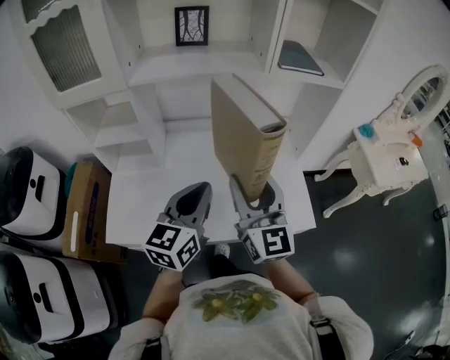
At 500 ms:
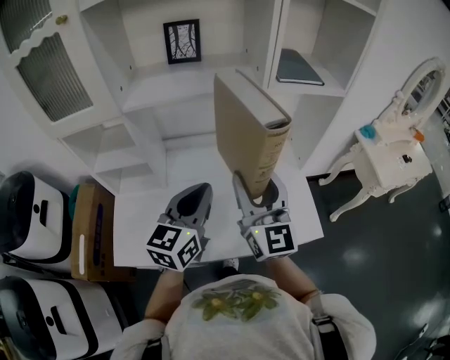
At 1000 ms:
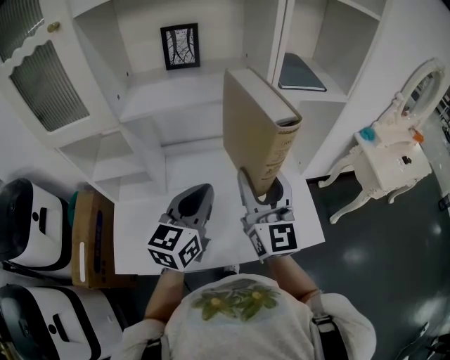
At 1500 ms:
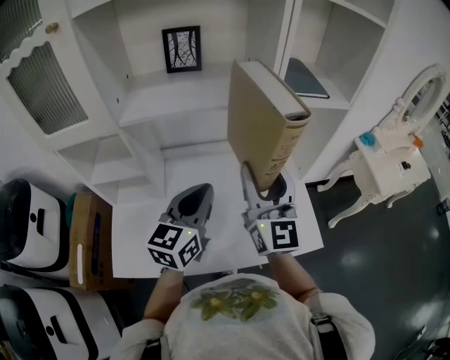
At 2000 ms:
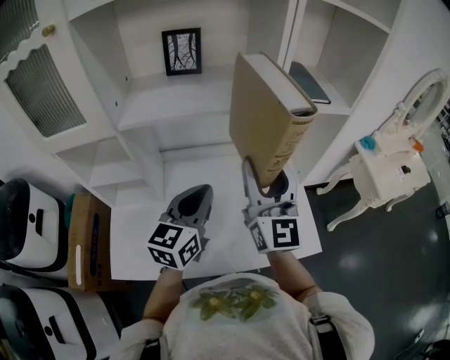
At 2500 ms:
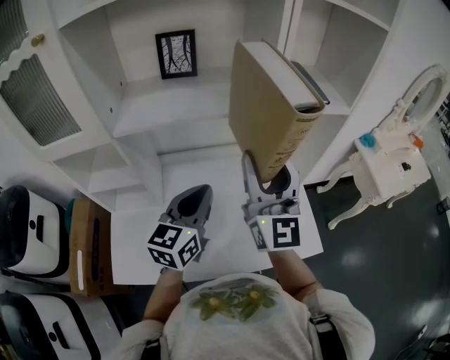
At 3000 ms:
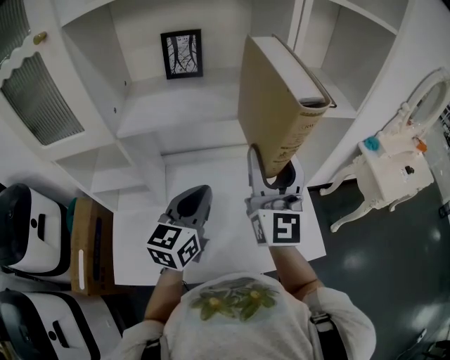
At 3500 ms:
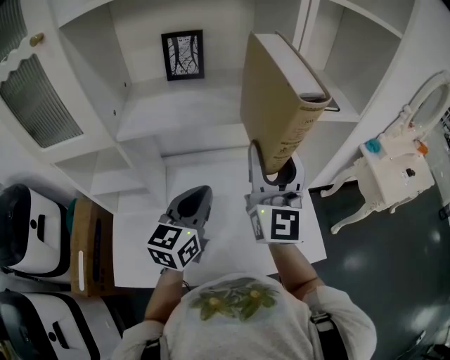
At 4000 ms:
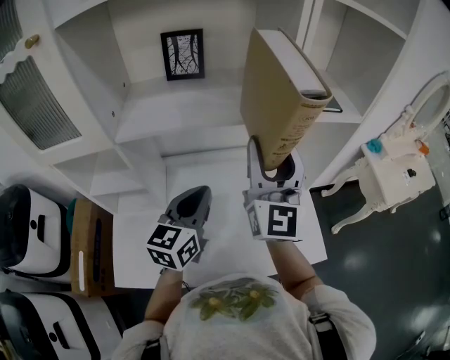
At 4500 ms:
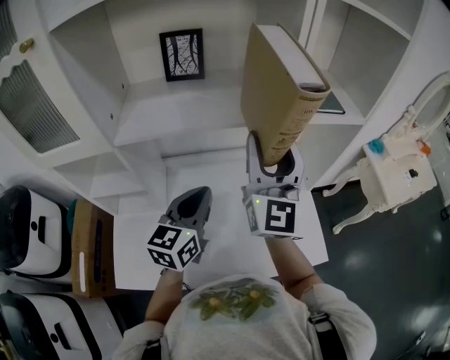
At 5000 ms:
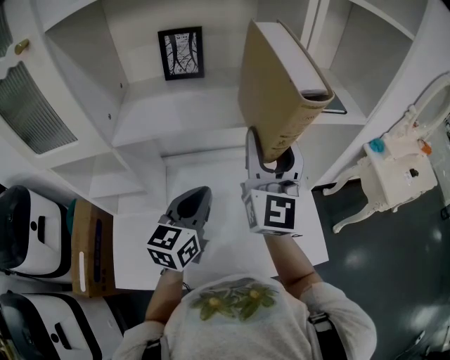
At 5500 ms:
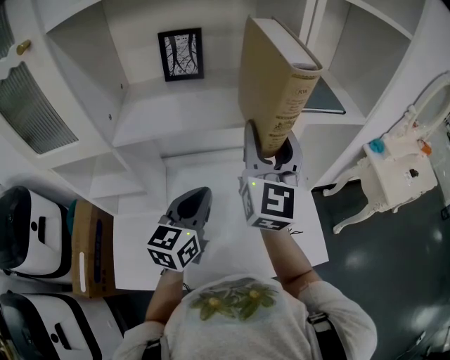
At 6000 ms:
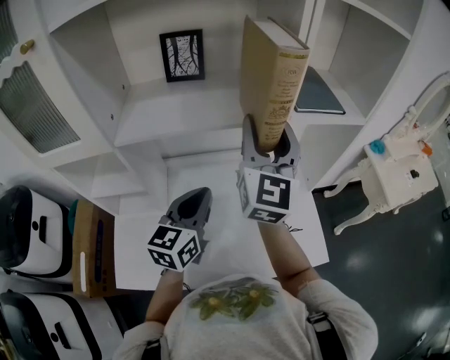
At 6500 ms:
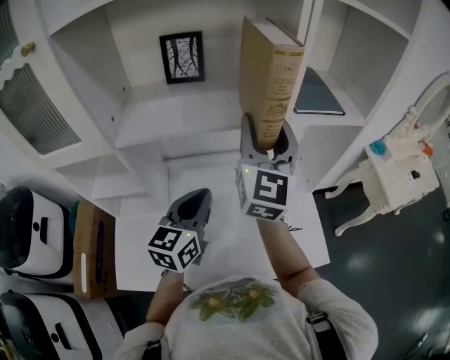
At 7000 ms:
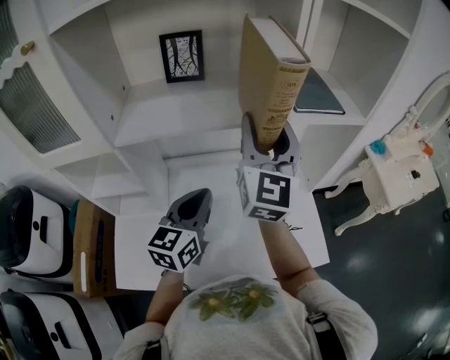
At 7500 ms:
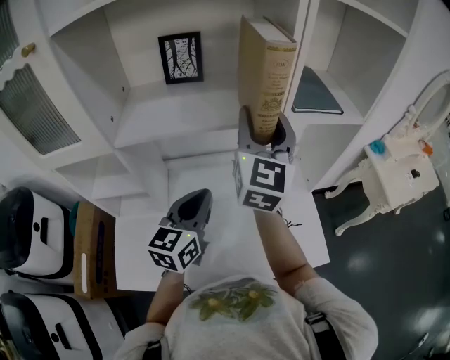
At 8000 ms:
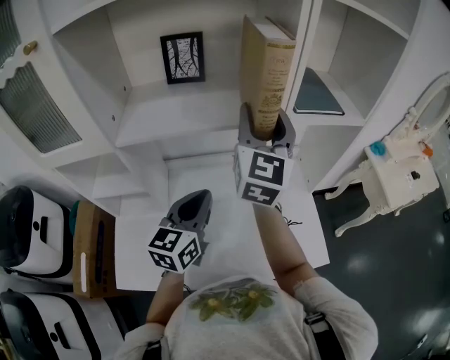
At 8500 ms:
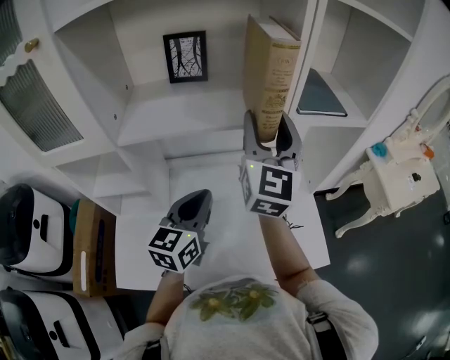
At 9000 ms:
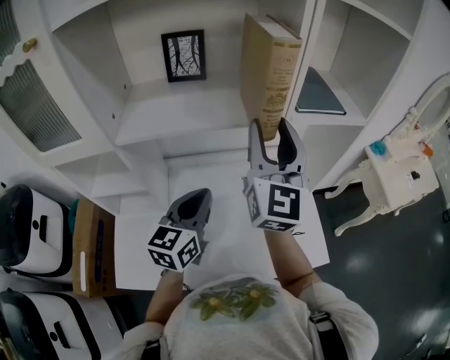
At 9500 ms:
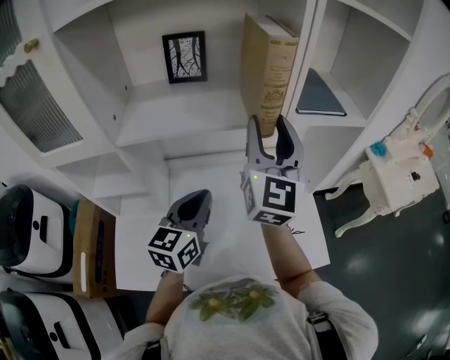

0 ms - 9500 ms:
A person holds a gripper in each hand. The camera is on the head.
0 ms - 2000 ms: The right gripper heads forward and upward, covering approximately 15 cm. The left gripper goes about 10 cm forward.
2000 ms - 4000 ms: The right gripper heads forward, covering about 5 cm.
4000 ms - 5500 ms: The grippers stay close to where they were, moving slightly.
5500 ms - 9500 ms: The grippers stay close to where they were, moving slightly.

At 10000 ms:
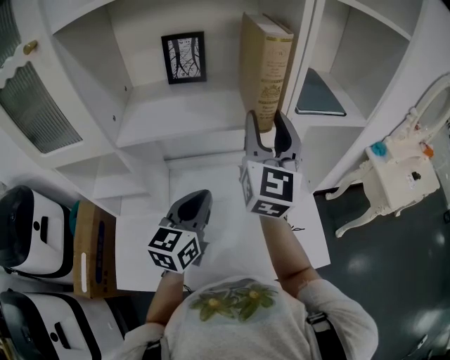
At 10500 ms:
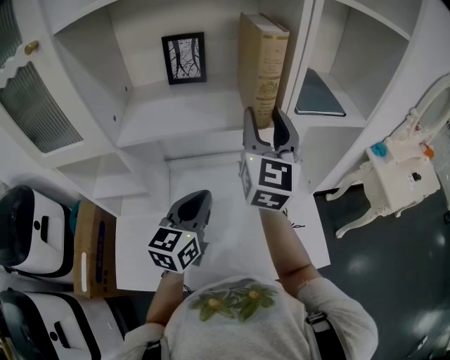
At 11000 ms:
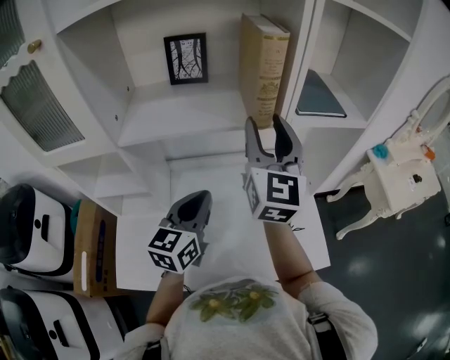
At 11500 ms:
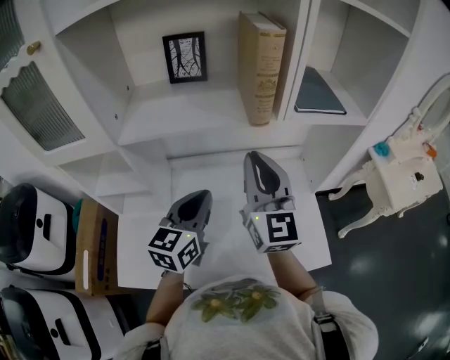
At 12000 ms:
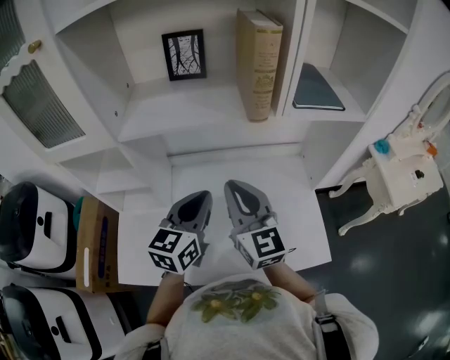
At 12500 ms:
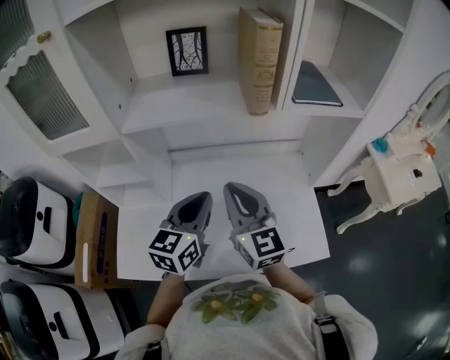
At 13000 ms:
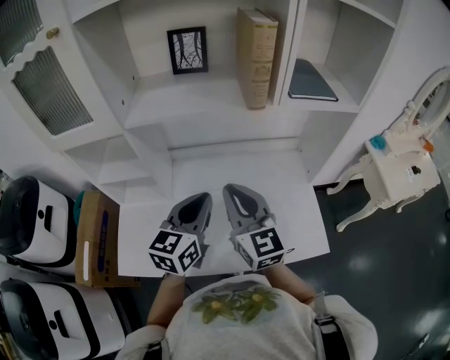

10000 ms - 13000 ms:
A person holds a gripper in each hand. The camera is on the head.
10000 ms - 11500 ms: The right gripper goes approximately 10 cm backward and downward, and closes.
11500 ms - 13000 ms: The right gripper heads backward, downward and to the left, covering about 15 cm; the left gripper is displaced backward by approximately 5 cm.

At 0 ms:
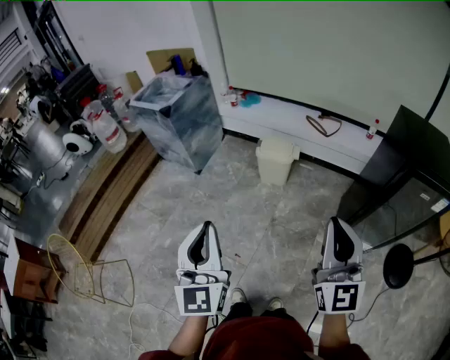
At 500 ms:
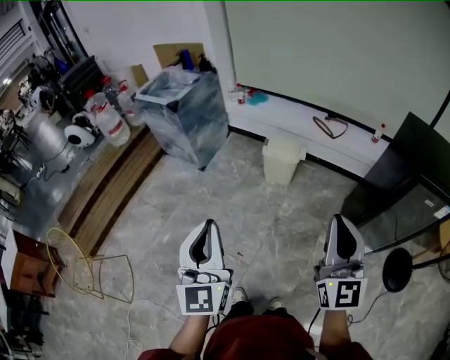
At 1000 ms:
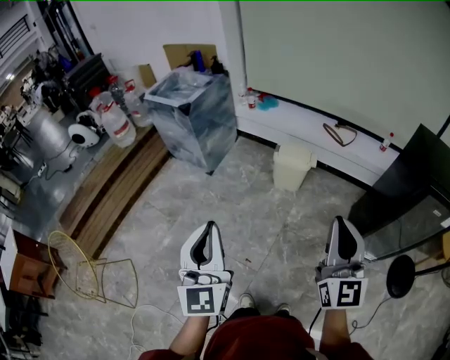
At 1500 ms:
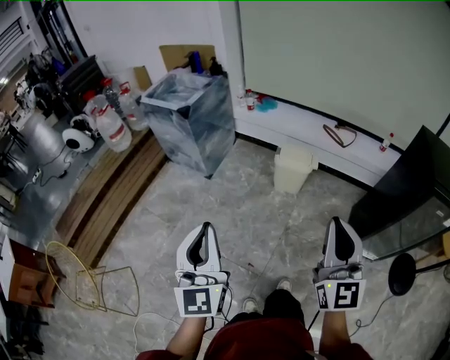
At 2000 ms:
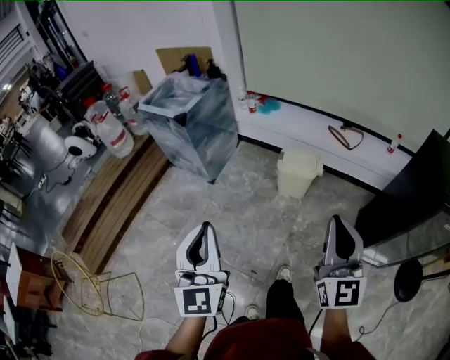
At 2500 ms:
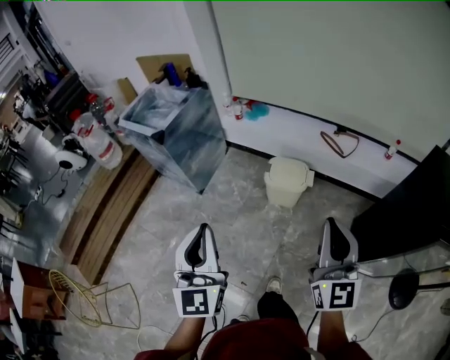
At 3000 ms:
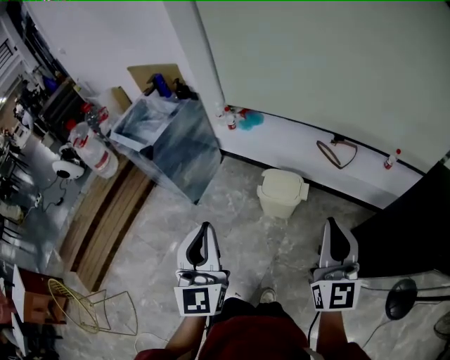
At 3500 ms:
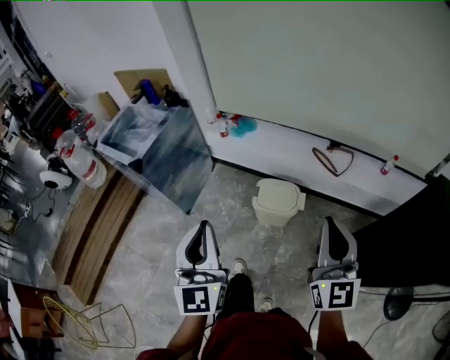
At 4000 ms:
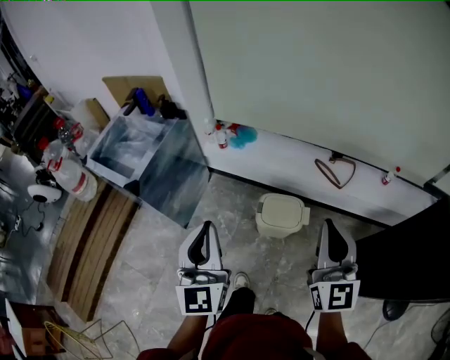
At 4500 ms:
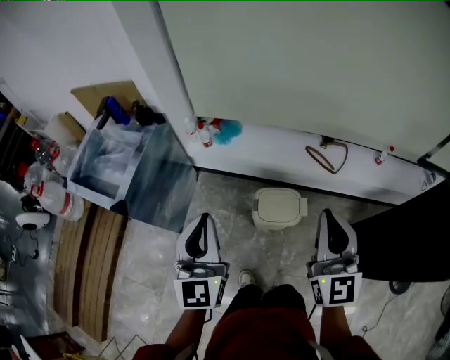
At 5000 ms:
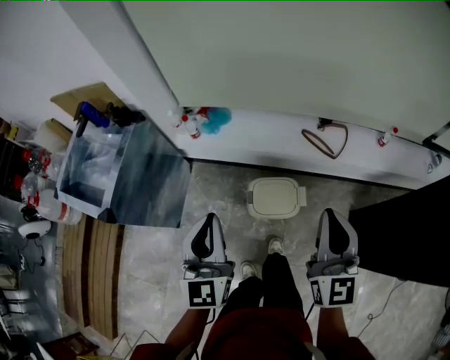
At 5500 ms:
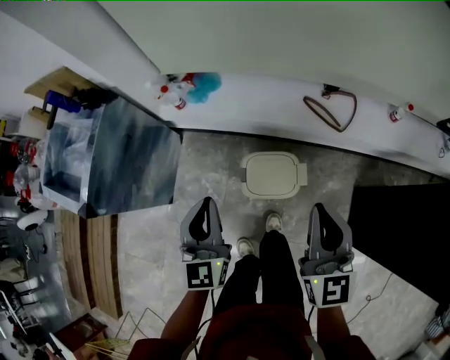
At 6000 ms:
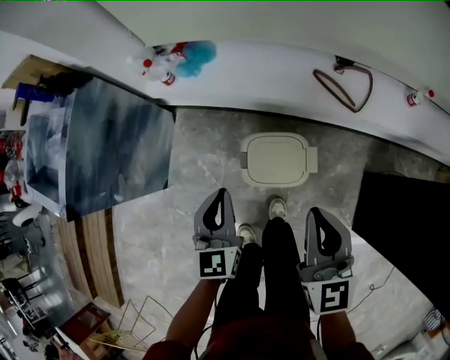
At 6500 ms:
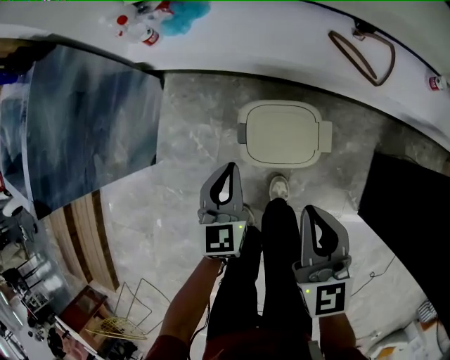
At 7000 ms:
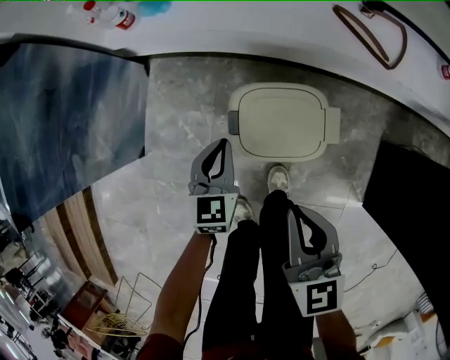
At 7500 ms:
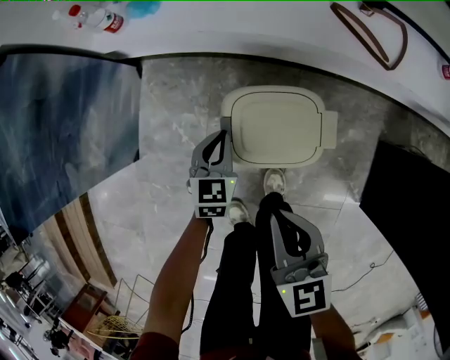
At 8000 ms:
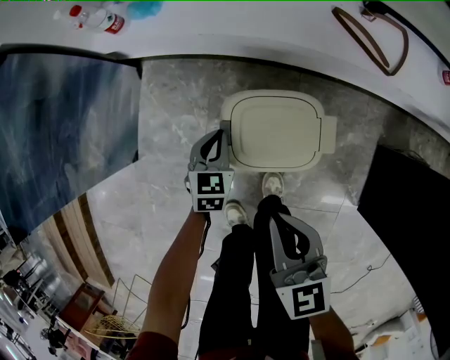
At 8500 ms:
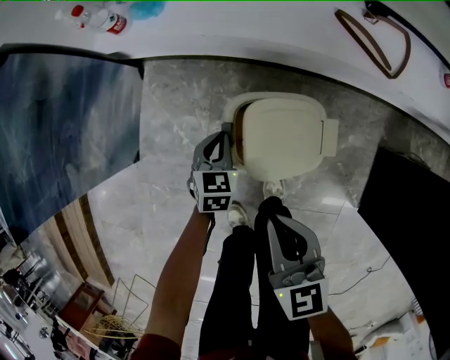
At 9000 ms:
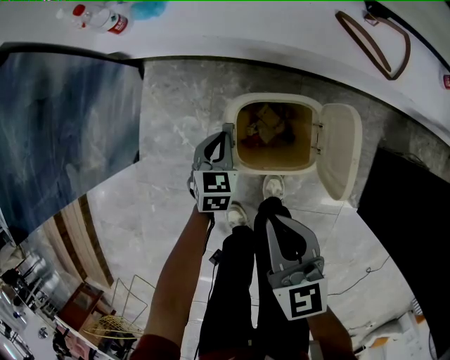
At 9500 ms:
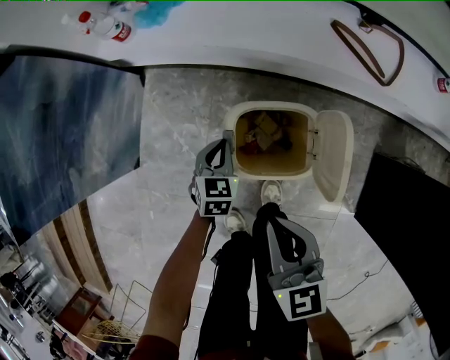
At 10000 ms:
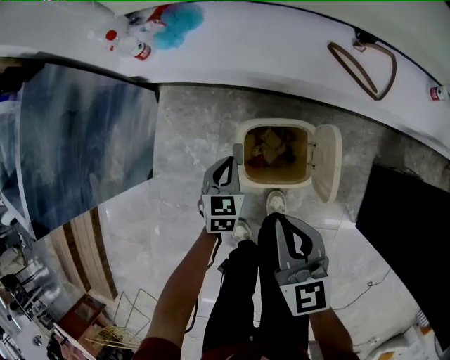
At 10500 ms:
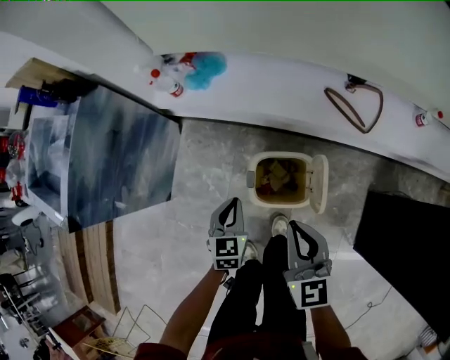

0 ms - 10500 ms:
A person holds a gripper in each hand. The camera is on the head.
0 ms - 2000 ms: The two grippers go roughly 20 cm forward and to the left.
2000 ms - 4000 ms: Both grippers move forward, roughly 40 cm.
4000 ms - 6500 ms: The left gripper moves downward and forward, roughly 50 cm, and angles its fingers downward, by some 30 degrees, while the right gripper is displaced downward by about 40 cm, and turns by approximately 30 degrees.
6500 ms - 8500 ms: The left gripper goes roughly 20 cm downward, and swivels roughly 20 degrees. Meanwhile the right gripper heads downward, covering approximately 10 cm.
8500 ms - 10500 ms: Both grippers travel together upward, some 15 cm.

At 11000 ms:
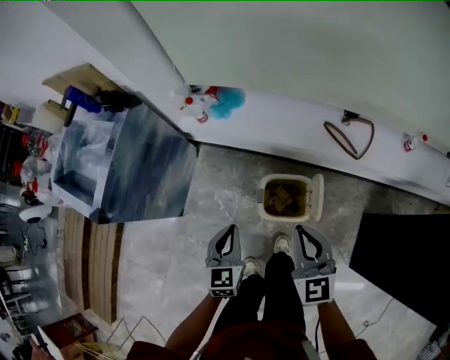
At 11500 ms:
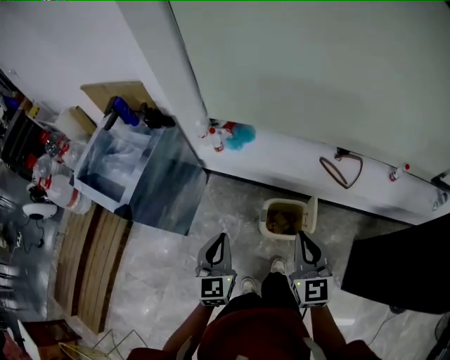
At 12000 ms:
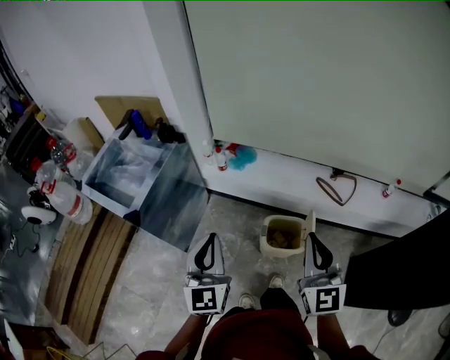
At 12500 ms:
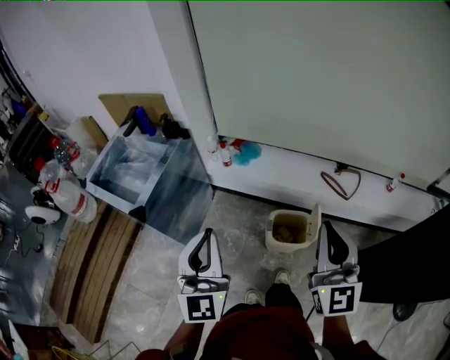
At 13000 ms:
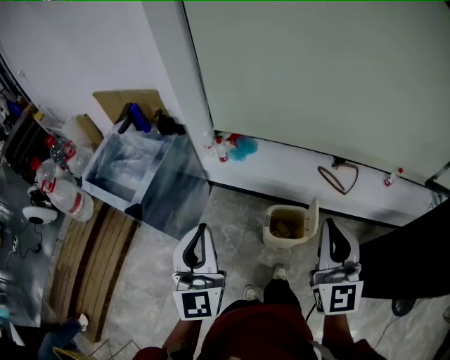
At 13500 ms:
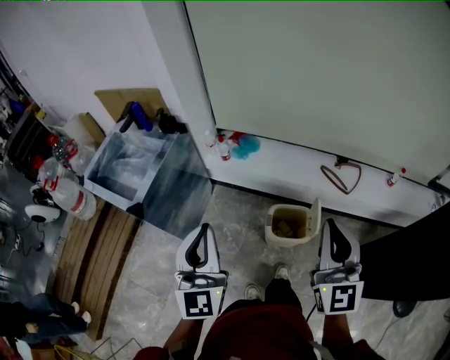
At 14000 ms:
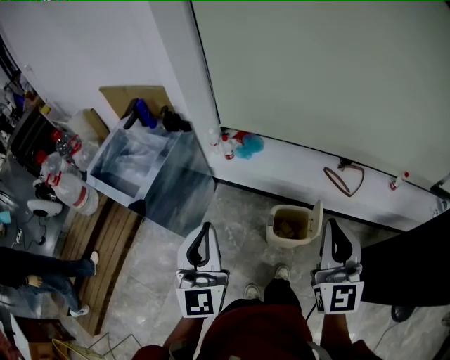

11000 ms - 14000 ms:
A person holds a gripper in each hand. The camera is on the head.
11000 ms - 12500 ms: The grippers both shift upward by some 30 cm. The right gripper turns by about 30 degrees; the left gripper tips its fingers upward by about 40 degrees.
12500 ms - 14000 ms: The grippers stay close to where they were, moving slightly.
